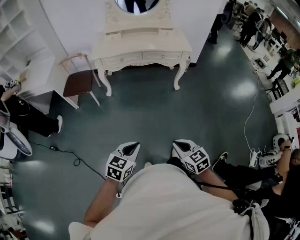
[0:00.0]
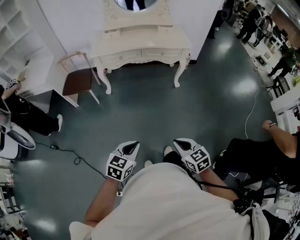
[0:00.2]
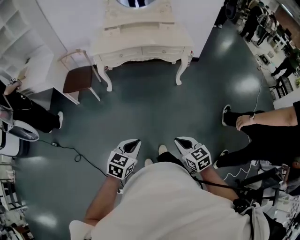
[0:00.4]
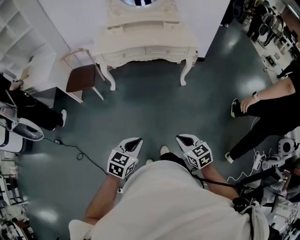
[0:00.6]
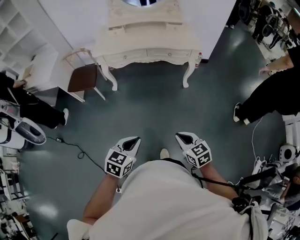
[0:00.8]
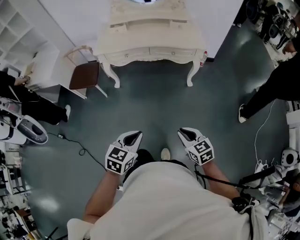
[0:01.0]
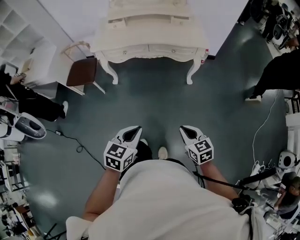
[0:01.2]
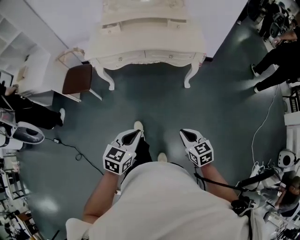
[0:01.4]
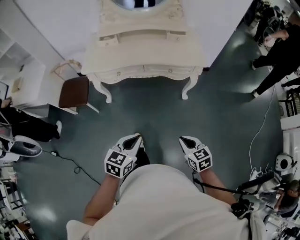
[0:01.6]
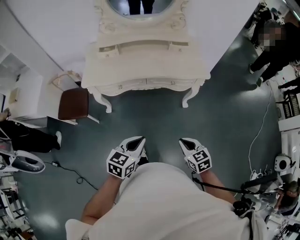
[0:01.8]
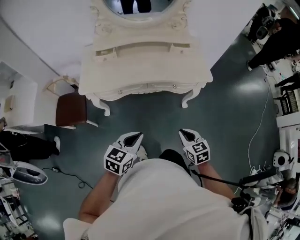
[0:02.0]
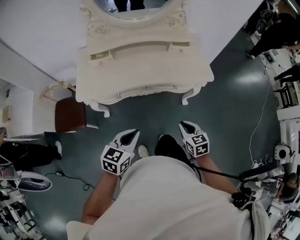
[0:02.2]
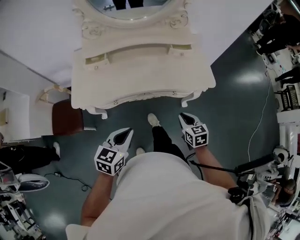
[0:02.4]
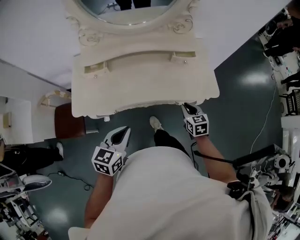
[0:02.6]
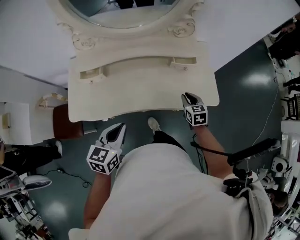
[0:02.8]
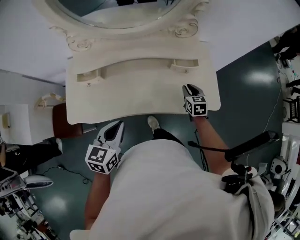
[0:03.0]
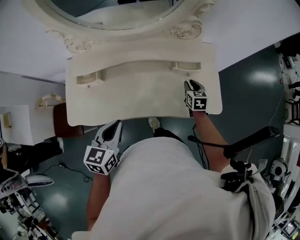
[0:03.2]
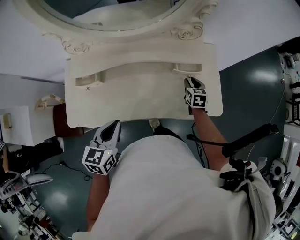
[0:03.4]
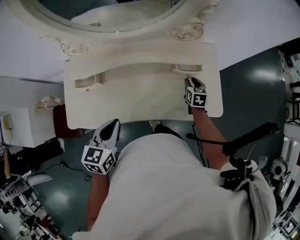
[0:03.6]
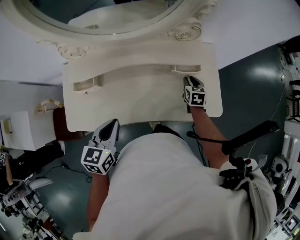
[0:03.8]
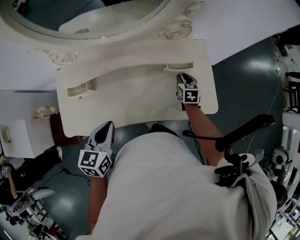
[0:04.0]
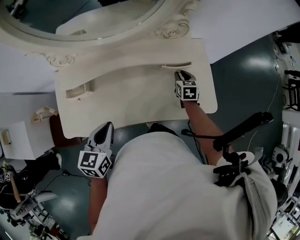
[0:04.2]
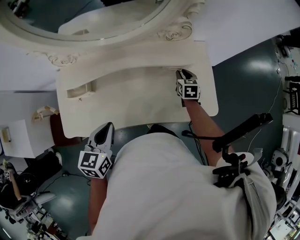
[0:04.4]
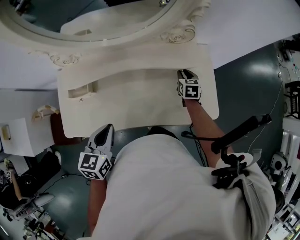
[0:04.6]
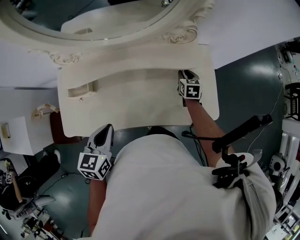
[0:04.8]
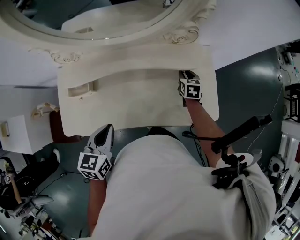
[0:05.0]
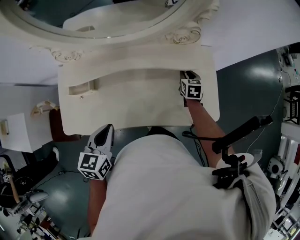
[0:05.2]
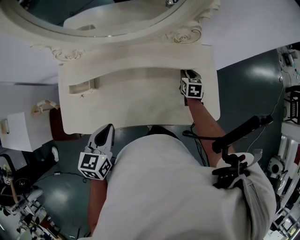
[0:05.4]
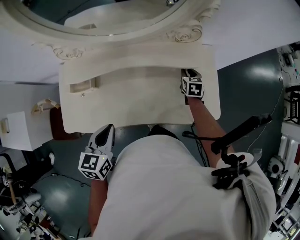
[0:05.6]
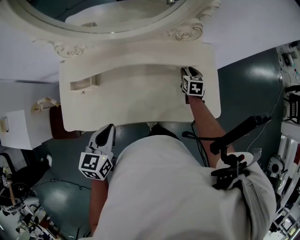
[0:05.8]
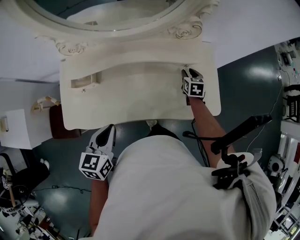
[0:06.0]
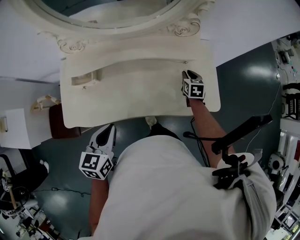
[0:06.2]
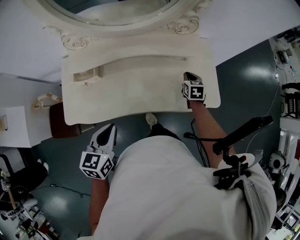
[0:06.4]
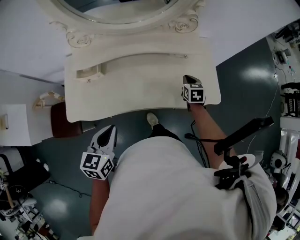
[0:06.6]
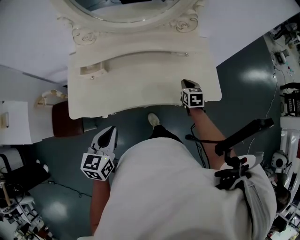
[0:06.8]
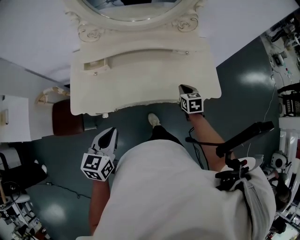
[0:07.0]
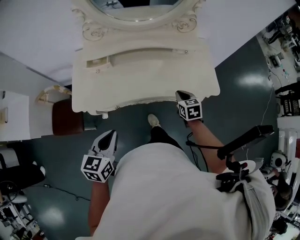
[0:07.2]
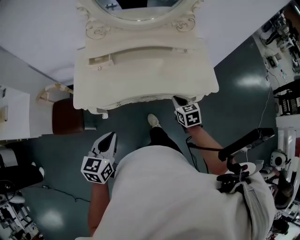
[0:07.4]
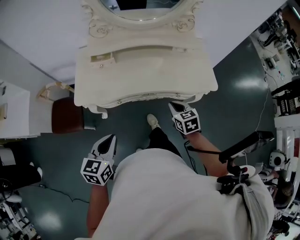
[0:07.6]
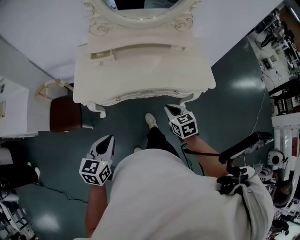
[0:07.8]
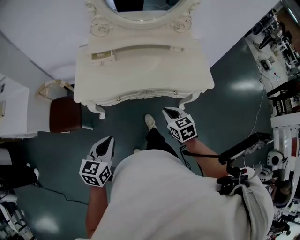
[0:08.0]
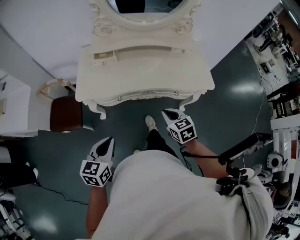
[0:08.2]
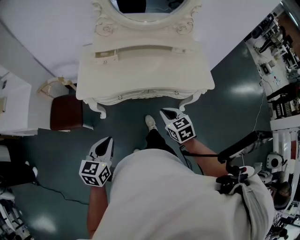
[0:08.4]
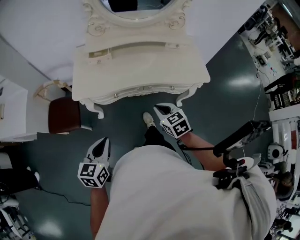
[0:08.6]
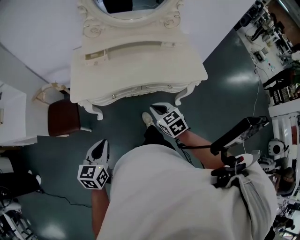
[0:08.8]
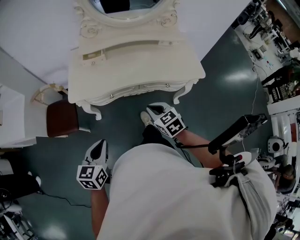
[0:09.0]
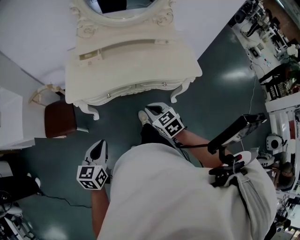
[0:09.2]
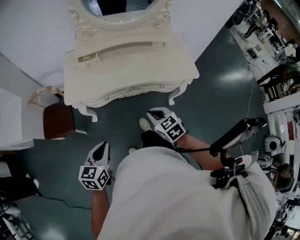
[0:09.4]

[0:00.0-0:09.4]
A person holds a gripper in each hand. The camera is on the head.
0:00.0 to 0:01.6: Both grippers travel together forward, about 35 cm.
0:01.6 to 0:03.2: The pair of grippers is taken forward, some 70 cm. The right gripper changes its angle by roughly 20 degrees, and opens up.
0:03.2 to 0:04.8: The right gripper moves forward, approximately 10 cm. Meanwhile the left gripper heads forward, covering roughly 5 cm.
0:04.8 to 0:06.2: The two grippers go approximately 5 cm backward.
0:06.2 to 0:07.8: The left gripper moves backward, about 30 cm. The right gripper goes some 50 cm backward and to the left, and swivels about 20 degrees.
0:07.8 to 0:09.4: Both grippers move backward, about 5 cm.

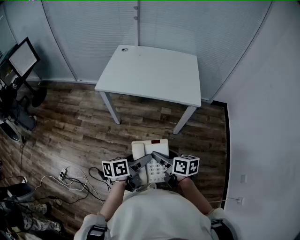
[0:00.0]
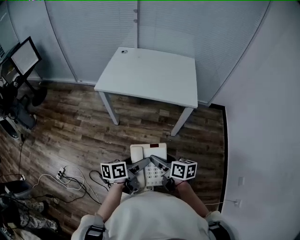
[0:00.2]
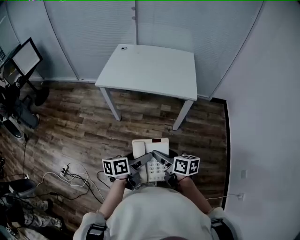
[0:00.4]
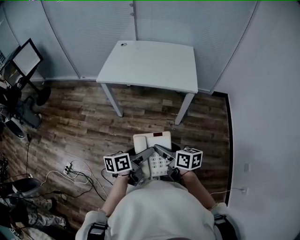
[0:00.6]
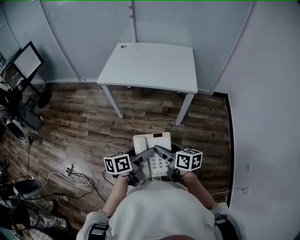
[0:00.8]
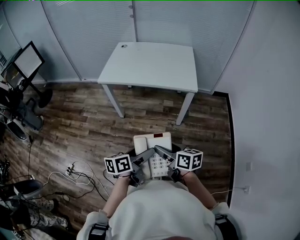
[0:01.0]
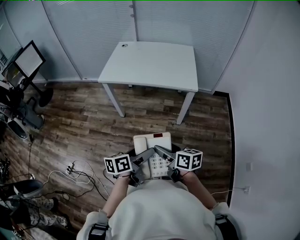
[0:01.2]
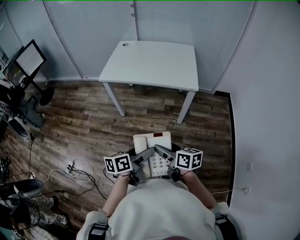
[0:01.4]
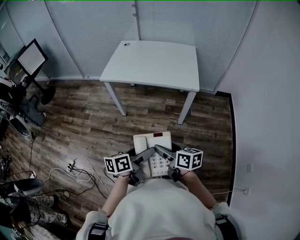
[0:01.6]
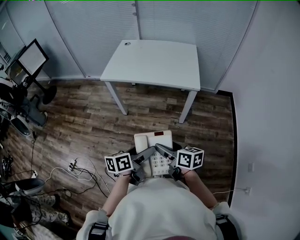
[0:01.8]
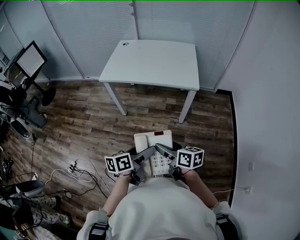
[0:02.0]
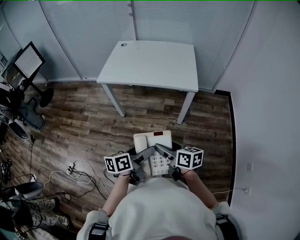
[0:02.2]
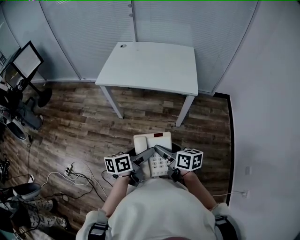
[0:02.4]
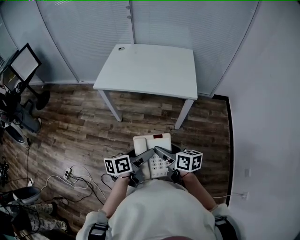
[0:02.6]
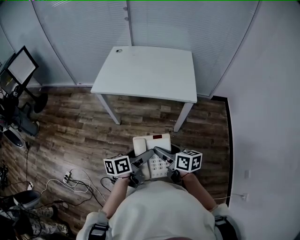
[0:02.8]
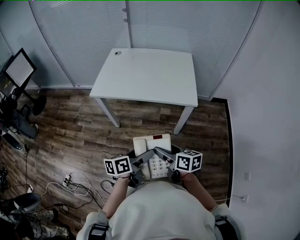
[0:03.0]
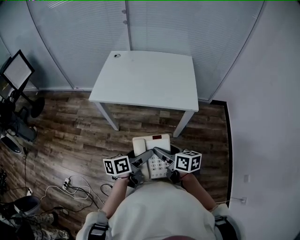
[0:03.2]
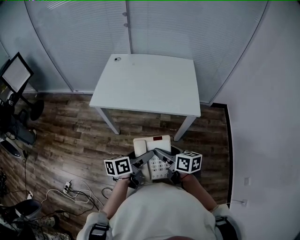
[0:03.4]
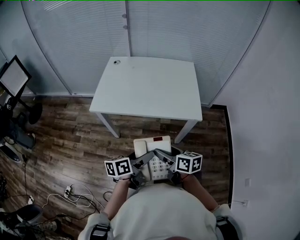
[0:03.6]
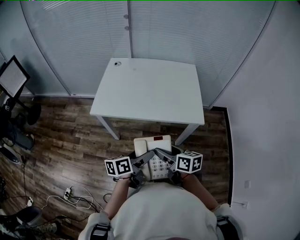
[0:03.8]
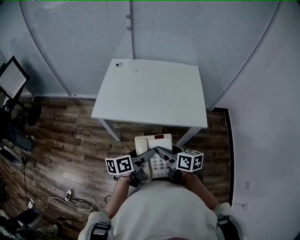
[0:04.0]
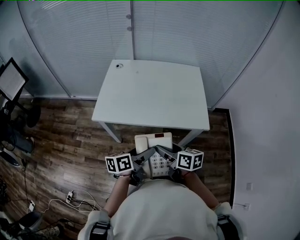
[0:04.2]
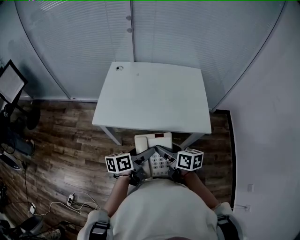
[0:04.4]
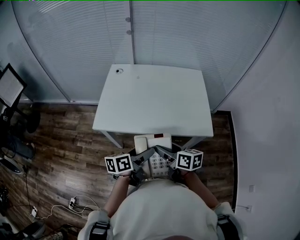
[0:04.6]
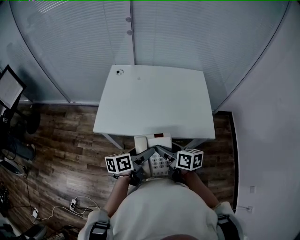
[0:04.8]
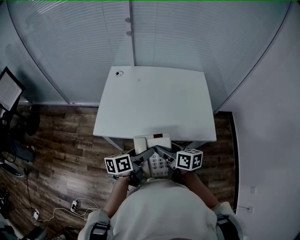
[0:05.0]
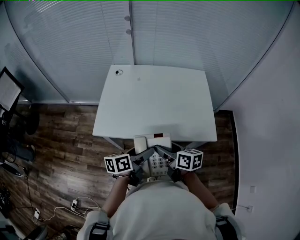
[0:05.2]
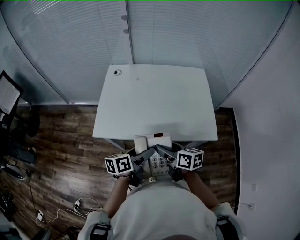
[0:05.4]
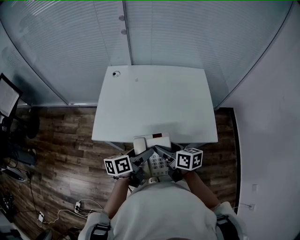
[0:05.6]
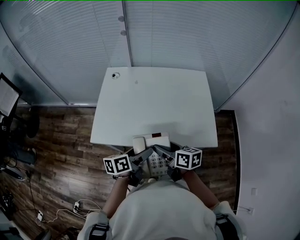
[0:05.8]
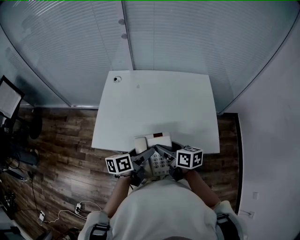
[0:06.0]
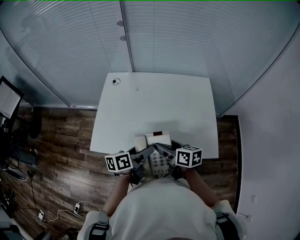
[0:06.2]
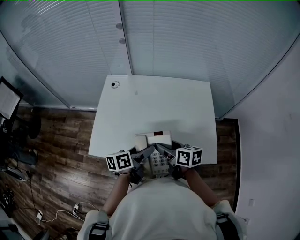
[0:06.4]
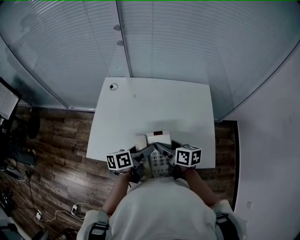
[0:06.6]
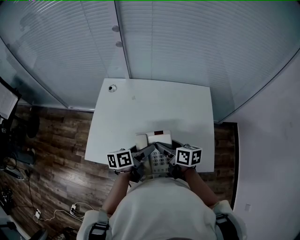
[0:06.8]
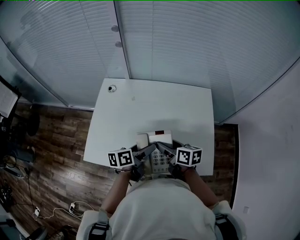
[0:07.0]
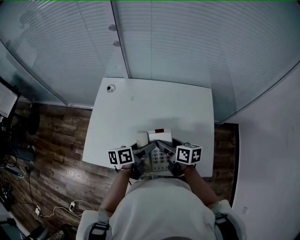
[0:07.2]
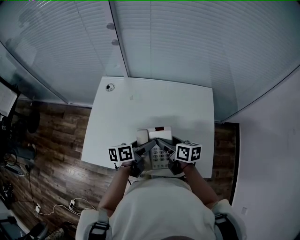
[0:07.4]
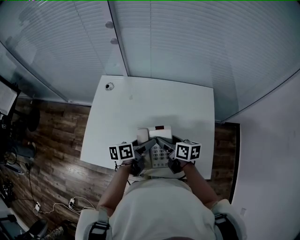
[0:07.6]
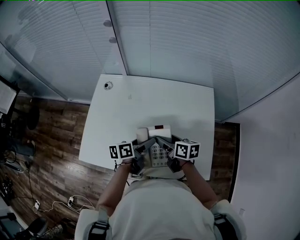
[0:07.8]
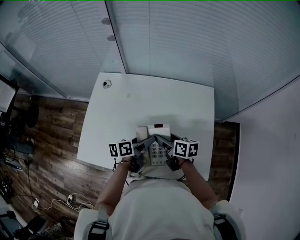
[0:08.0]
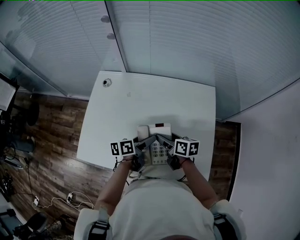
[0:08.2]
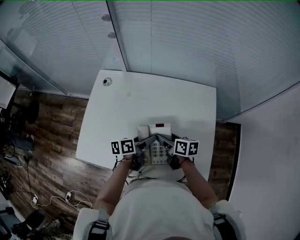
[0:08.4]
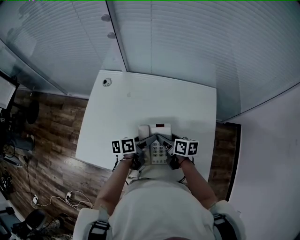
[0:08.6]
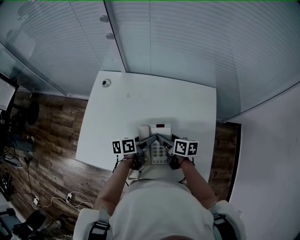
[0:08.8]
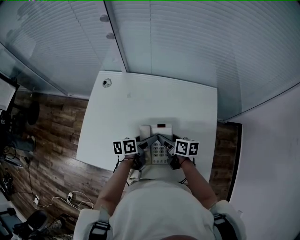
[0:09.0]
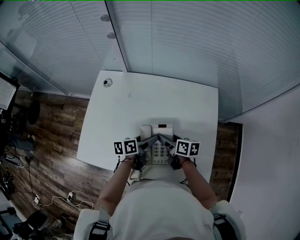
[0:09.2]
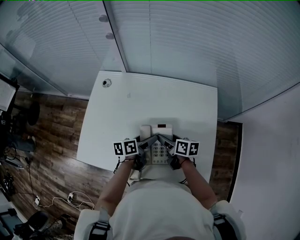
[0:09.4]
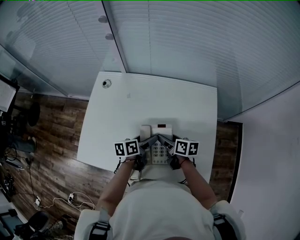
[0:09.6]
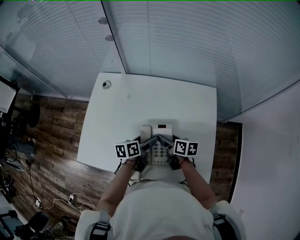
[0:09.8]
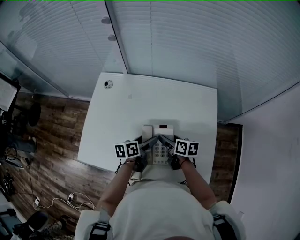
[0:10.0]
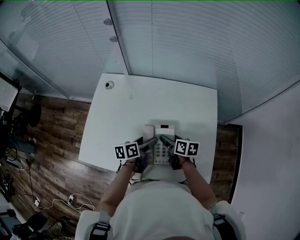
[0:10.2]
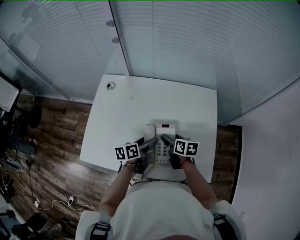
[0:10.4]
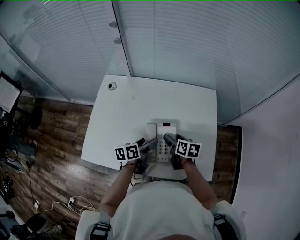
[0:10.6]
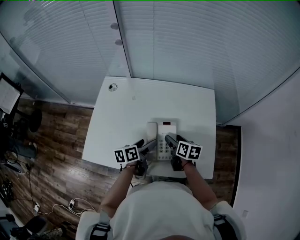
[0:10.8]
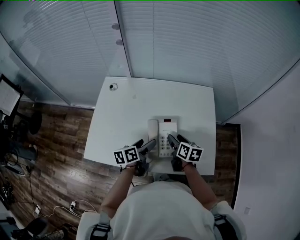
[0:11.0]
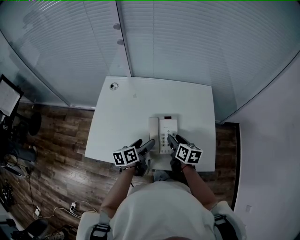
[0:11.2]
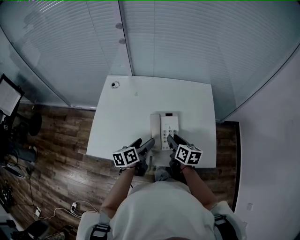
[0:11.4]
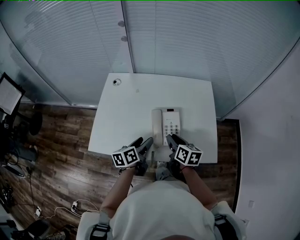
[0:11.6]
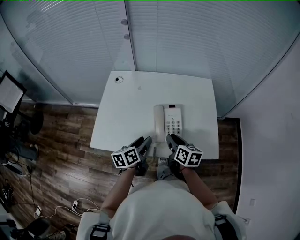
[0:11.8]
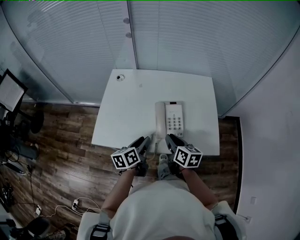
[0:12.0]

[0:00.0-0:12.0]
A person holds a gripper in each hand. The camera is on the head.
0:00.0 to 0:01.6: The two grippers go roughly 10 cm backward.
0:01.6 to 0:03.0: The grippers both shift forward by roughly 15 cm.
0:03.0 to 0:04.4: The grippers both shift forward and to the left by roughly 25 cm.
0:04.4 to 0:06.0: Both grippers move forward, approximately 20 cm.
0:06.0 to 0:07.6: The two grippers go about 20 cm forward and to the right.
0:07.6 to 0:09.0: The two grippers go approximately 5 cm downward.
0:09.0 to 0:10.4: The grippers make only small movements.
0:10.4 to 0:12.0: The right gripper is displaced backward and upward by approximately 20 cm, and closes its fingers, while the left gripper heads backward, to the left and upward, covering some 20 cm, and closes.

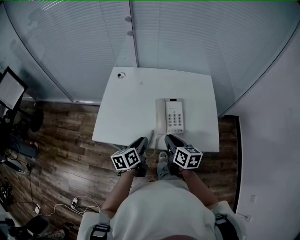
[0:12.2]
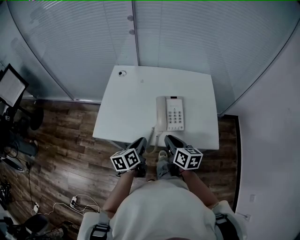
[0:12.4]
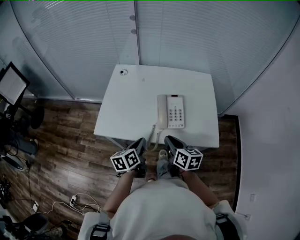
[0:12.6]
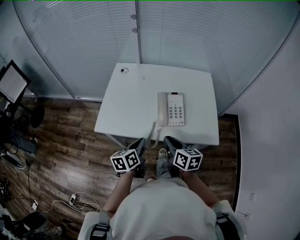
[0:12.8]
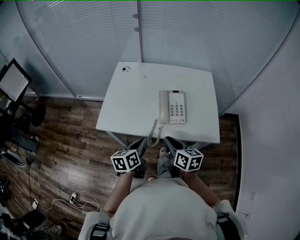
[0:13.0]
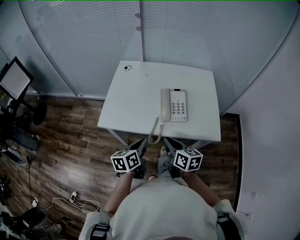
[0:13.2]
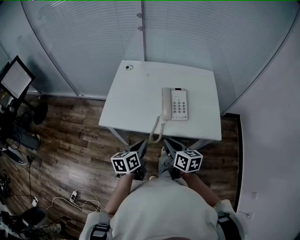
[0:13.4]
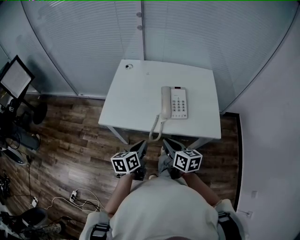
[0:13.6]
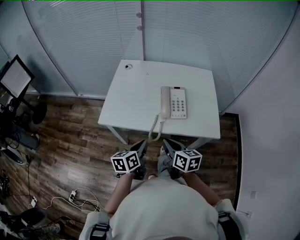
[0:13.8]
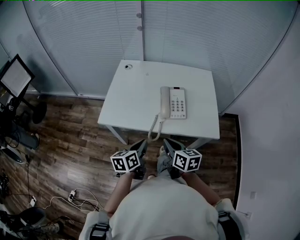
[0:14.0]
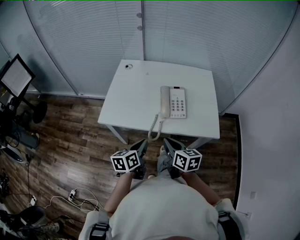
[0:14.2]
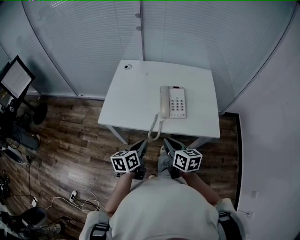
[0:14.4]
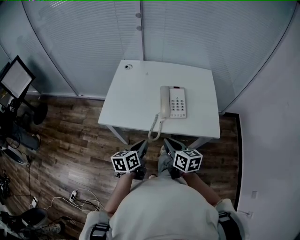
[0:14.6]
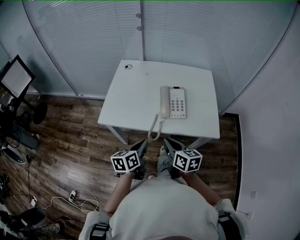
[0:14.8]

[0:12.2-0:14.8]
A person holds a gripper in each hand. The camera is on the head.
0:12.2 to 0:13.4: Both grippers move backward, some 10 cm.
0:13.4 to 0:14.8: The grippers stay close to where they were, moving slightly.
